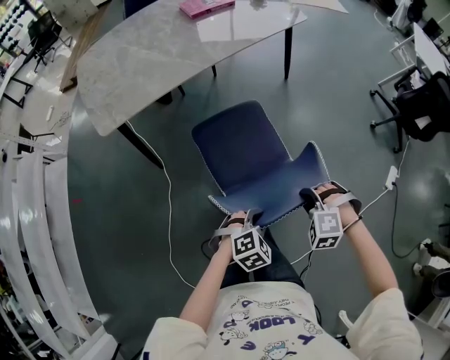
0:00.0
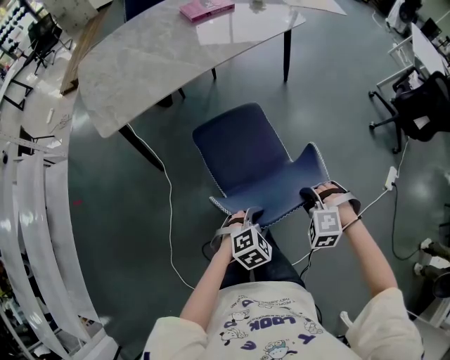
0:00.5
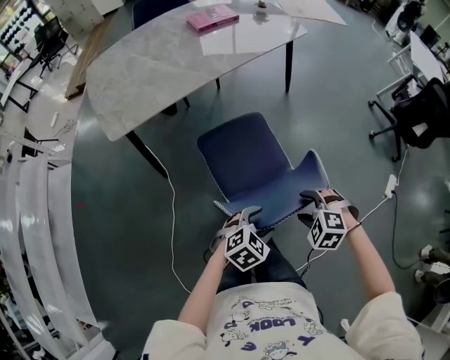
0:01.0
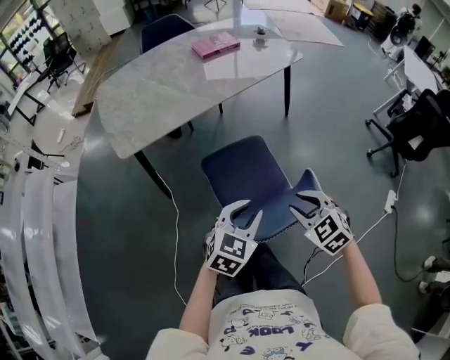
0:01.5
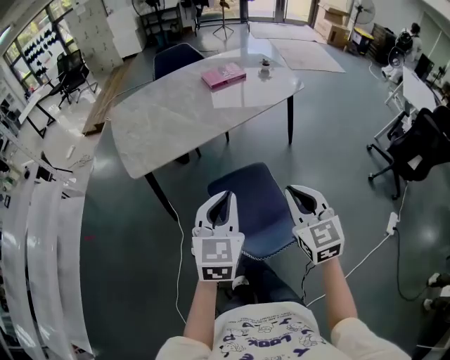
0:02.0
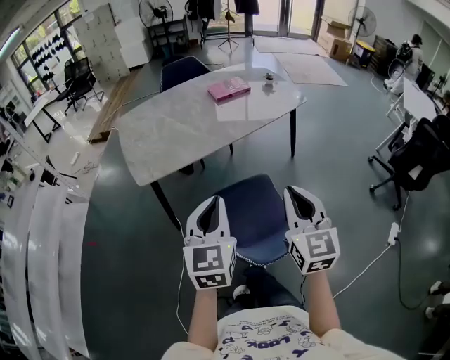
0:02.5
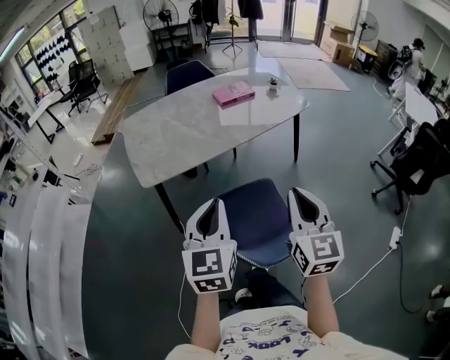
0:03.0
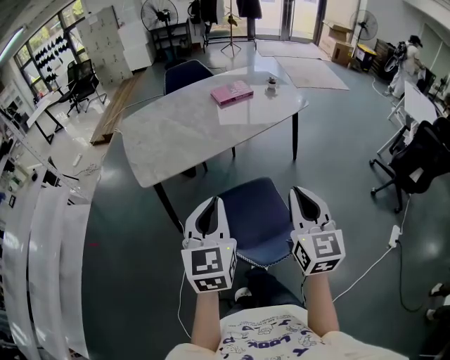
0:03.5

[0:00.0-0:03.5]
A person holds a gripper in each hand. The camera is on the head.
0:00.0 to 0:02.0: Both grippers move upward, some 30 cm. The left gripper tips its fingers upward by roughly 40 degrees, and opens, then closes again. The right gripper tilts its fingers approximately 50 degrees upward, and opens and closes again.
0:02.0 to 0:03.5: The left gripper goes approximately 10 cm upward and to the left. The right gripper travels upward by roughly 5 cm.

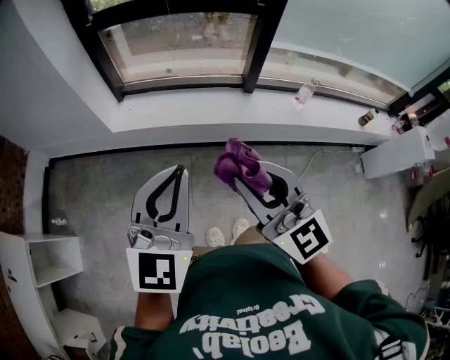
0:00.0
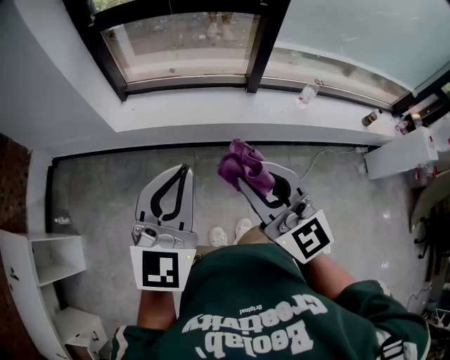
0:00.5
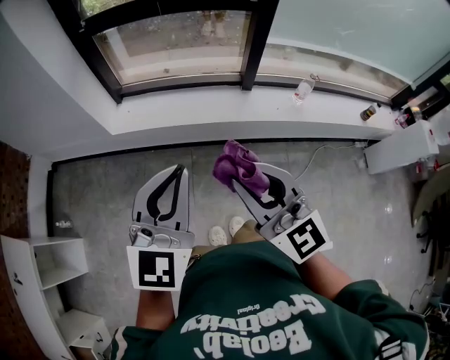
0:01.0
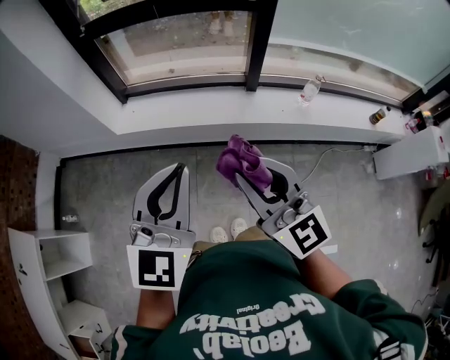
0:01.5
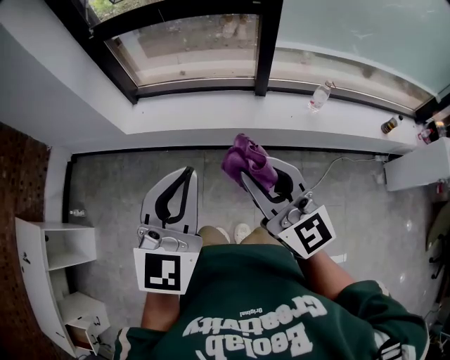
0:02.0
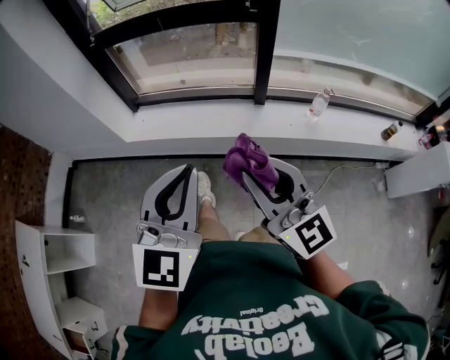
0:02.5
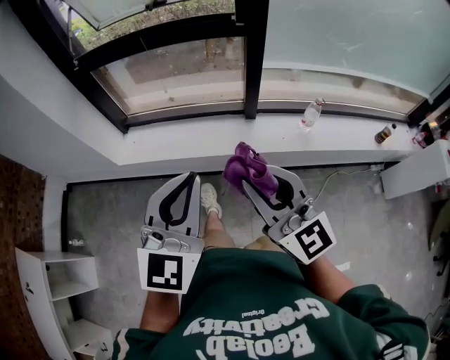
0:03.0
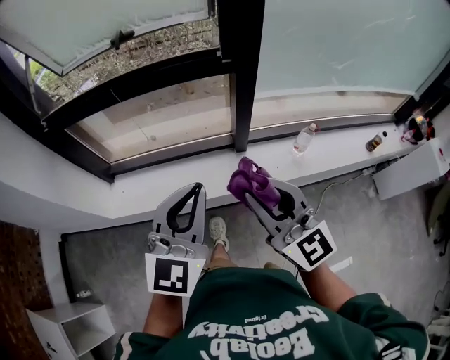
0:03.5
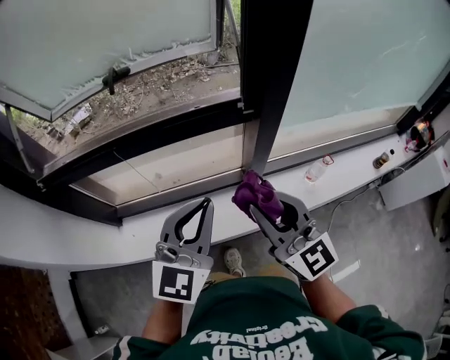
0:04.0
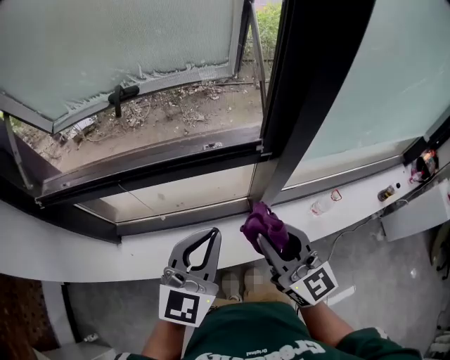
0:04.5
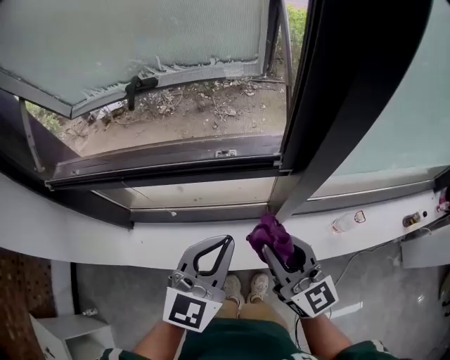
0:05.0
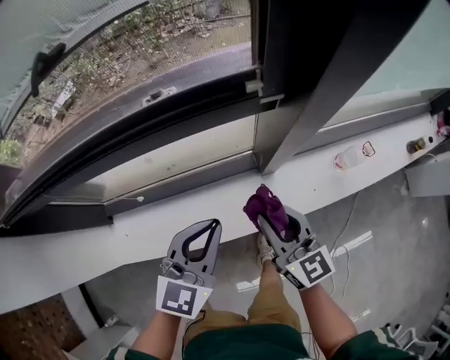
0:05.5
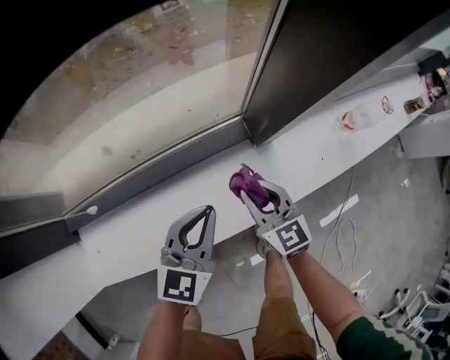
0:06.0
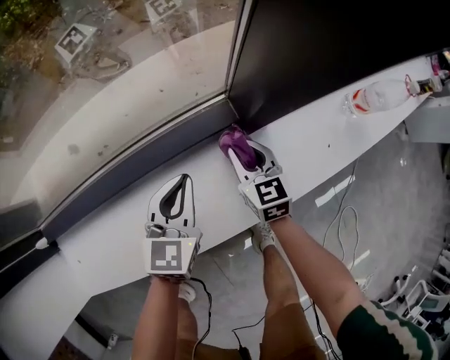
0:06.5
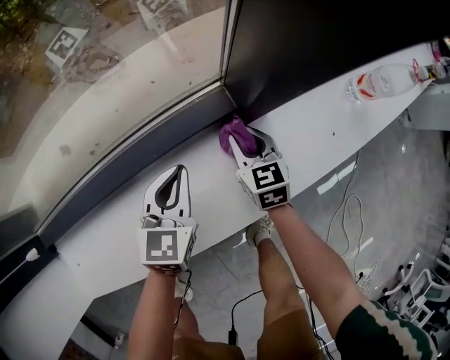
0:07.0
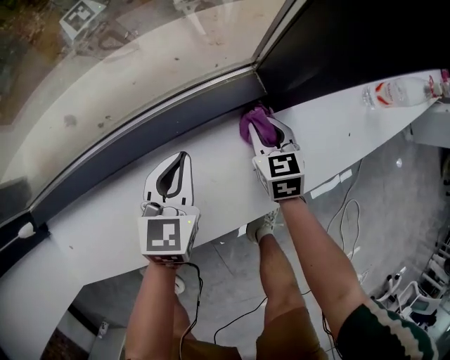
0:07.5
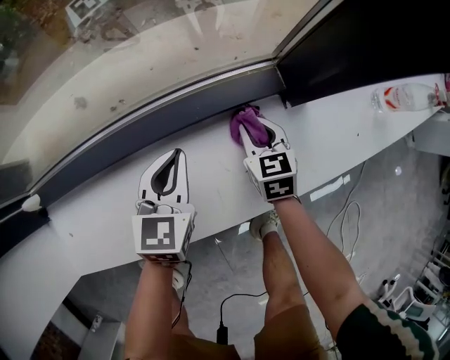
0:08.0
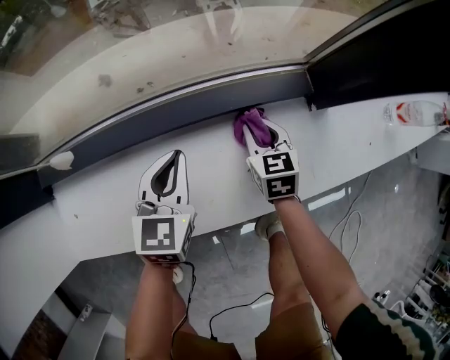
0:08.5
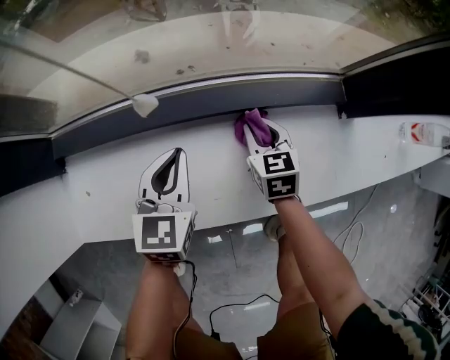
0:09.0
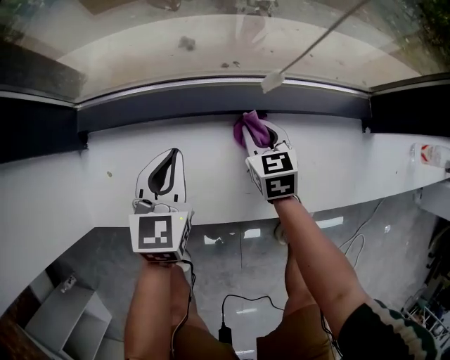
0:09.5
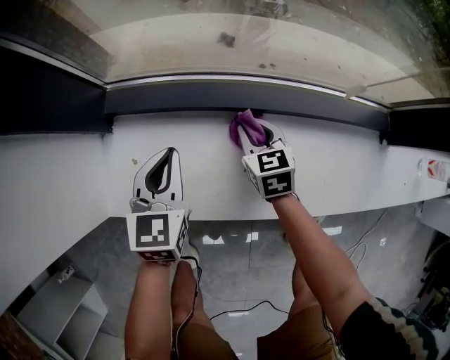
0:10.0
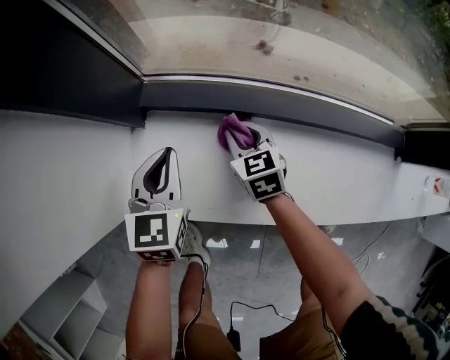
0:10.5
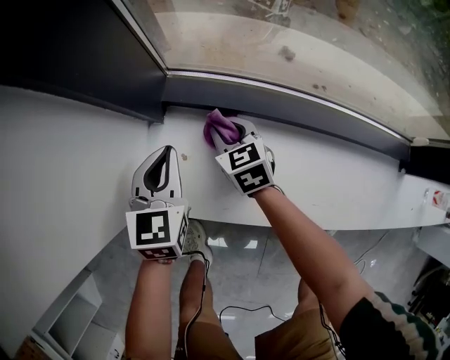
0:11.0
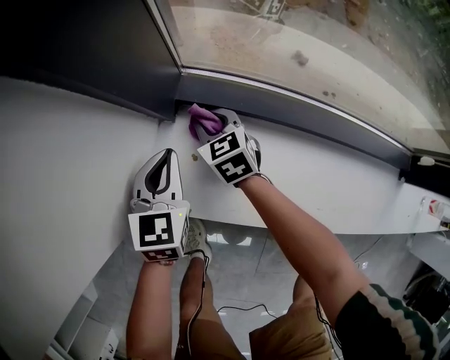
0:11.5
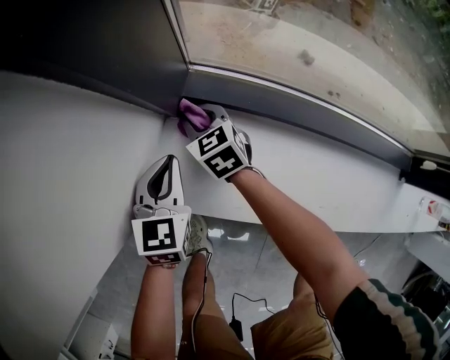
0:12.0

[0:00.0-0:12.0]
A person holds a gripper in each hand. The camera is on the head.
0:00.0 to 0:02.0: The grippers both shift to the right by roughly 10 cm.
0:02.0 to 0:04.0: The two grippers travel together, forward, approximately 40 cm. The left gripper rotates approximately 20 degrees.
0:04.0 to 0:06.0: Both grippers travel together downward, about 50 cm. The left gripper turns by roughly 30 degrees. Meanwhile the right gripper turns by about 30 degrees.
0:06.0 to 0:08.0: The left gripper moves downward and to the left, about 20 cm. The right gripper travels downward by approximately 20 cm.
0:08.0 to 0:10.0: The left gripper changes place by about 35 cm, and swivels roughly 20 degrees. The right gripper shifts by about 40 cm, and turns by about 20 degrees.
0:10.0 to 0:12.0: The left gripper is displaced to the left by approximately 20 cm; the right gripper travels to the left by roughly 30 cm, and rotates roughly 30 degrees.

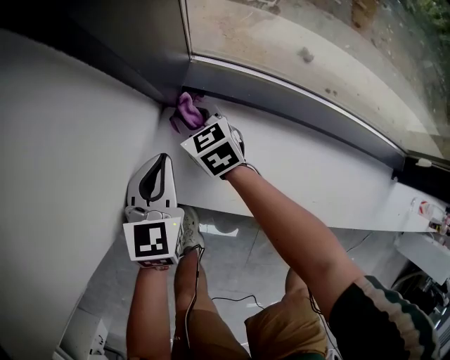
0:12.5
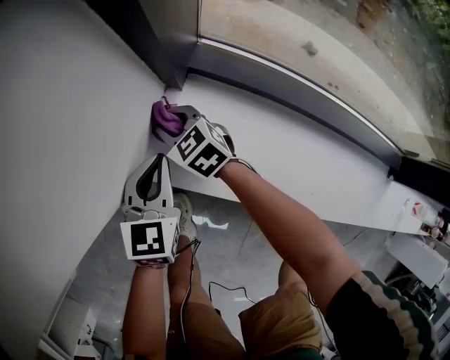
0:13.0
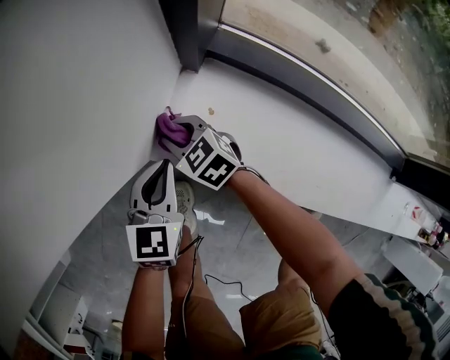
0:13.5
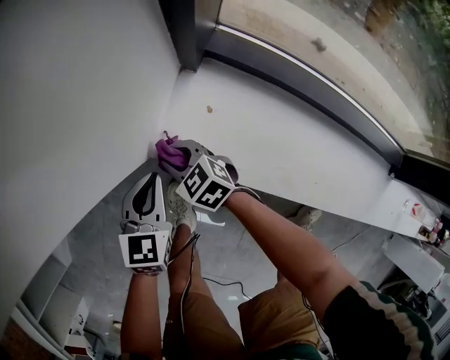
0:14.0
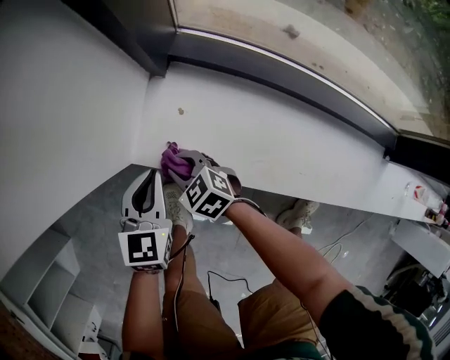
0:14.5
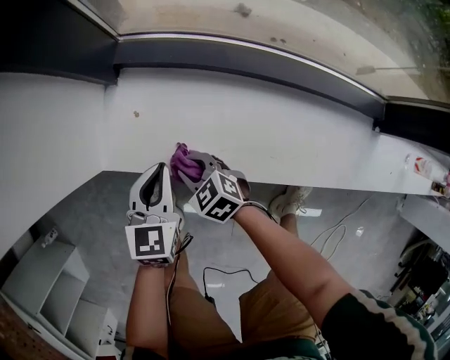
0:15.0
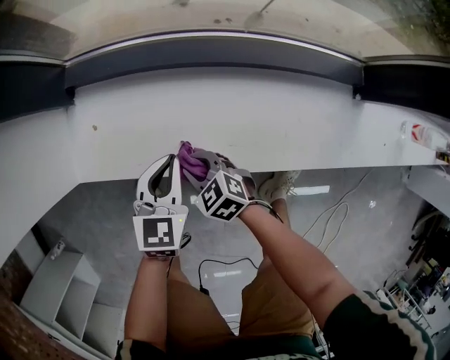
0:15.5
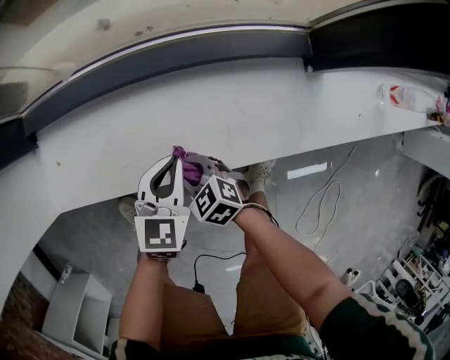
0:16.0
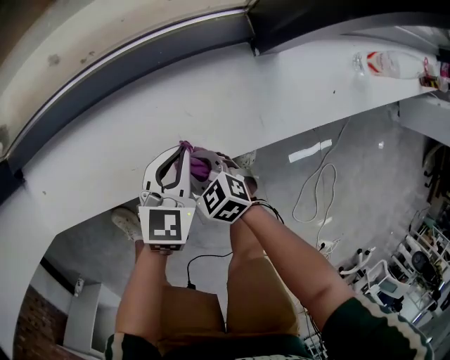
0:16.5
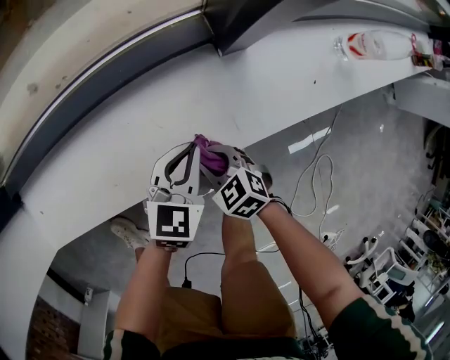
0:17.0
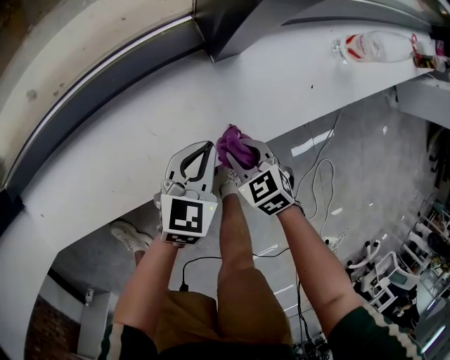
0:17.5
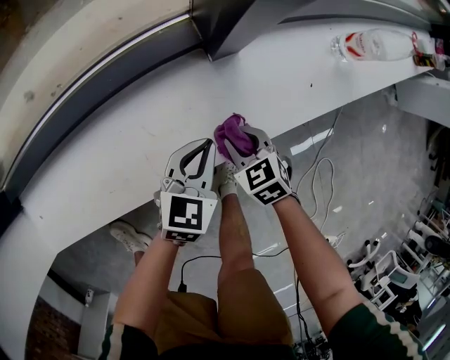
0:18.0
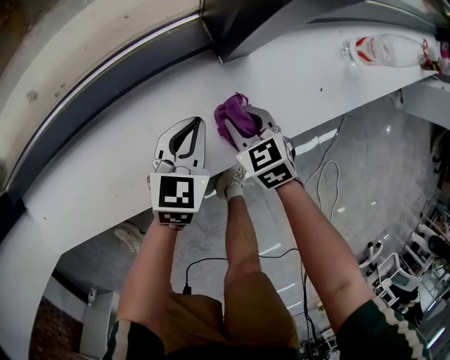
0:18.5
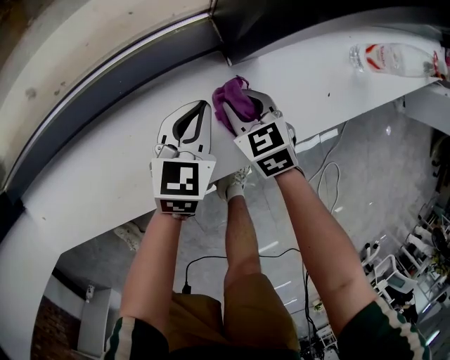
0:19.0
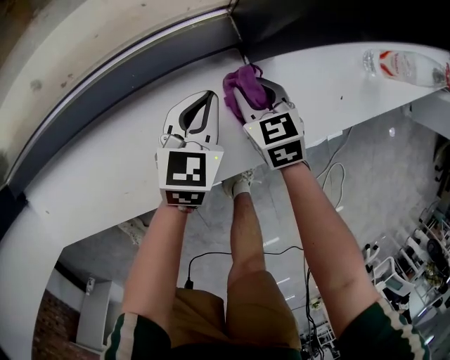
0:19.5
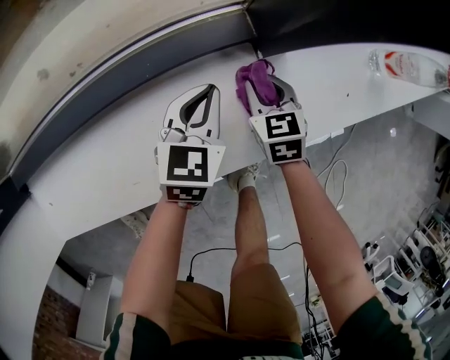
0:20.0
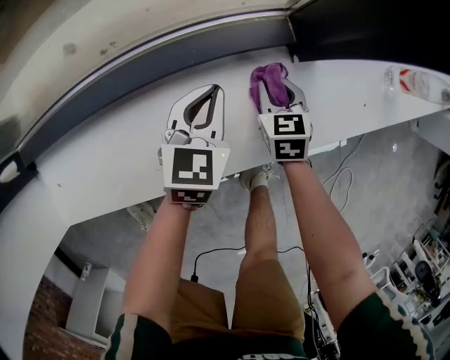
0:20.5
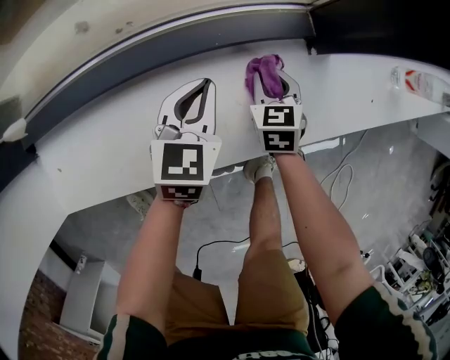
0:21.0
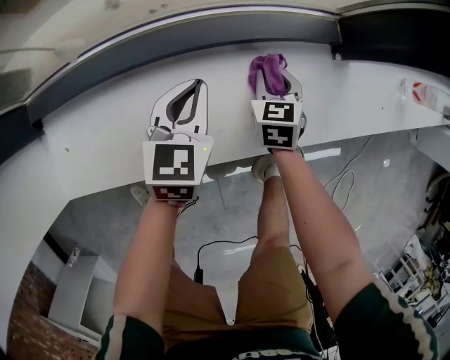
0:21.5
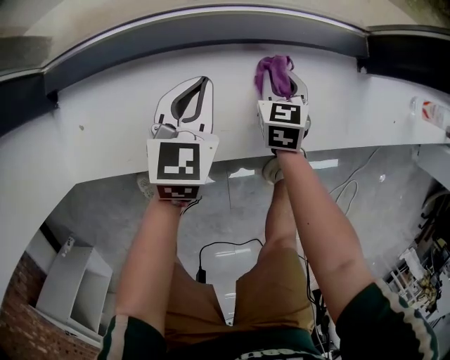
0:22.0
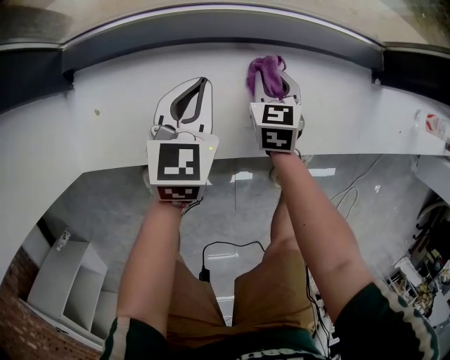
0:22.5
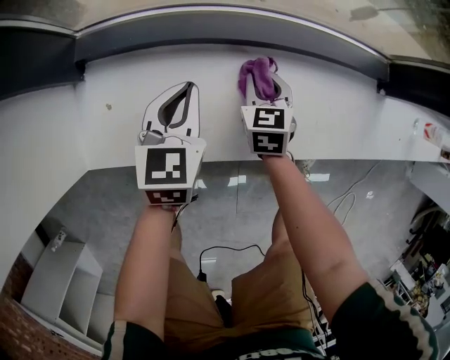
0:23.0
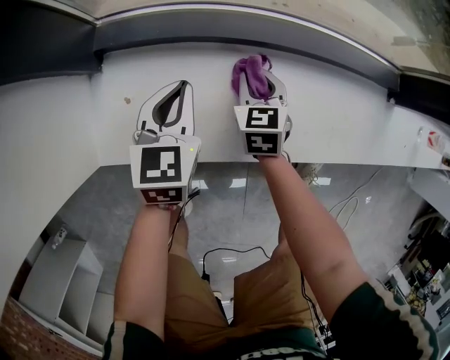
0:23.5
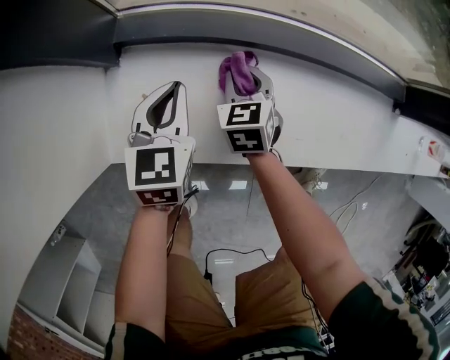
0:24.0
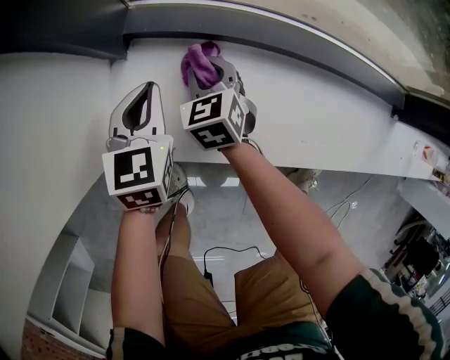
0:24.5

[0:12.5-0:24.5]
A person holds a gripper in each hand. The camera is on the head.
0:12.5 to 0:14.5: The left gripper shifts approximately 10 cm backward. The right gripper goes approximately 20 cm backward and to the left, and turns by some 20 degrees.
0:14.5 to 0:16.5: The two grippers travel together, roughly 60 cm. The left gripper turns by some 40 degrees, while the right gripper rotates some 30 degrees.
0:16.5 to 0:18.5: The right gripper moves to the right and forward, about 25 cm, and turns by about 30 degrees; the left gripper heads to the right and forward, covering some 15 cm.
0:18.5 to 0:20.5: The left gripper heads to the left, covering roughly 10 cm. The right gripper travels forward and to the left by about 10 cm.
0:20.5 to 0:22.5: The right gripper travels to the left by some 30 cm; the left gripper goes some 30 cm to the left and backward.
0:22.5 to 0:24.5: Both grippers travel together to the left, approximately 30 cm. The right gripper swivels about 30 degrees.
